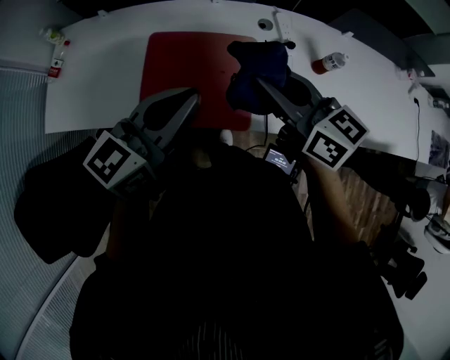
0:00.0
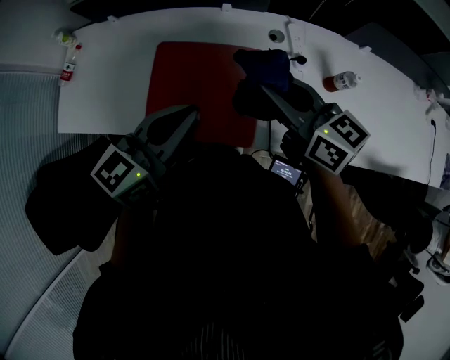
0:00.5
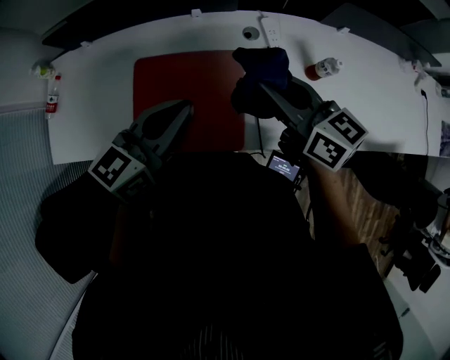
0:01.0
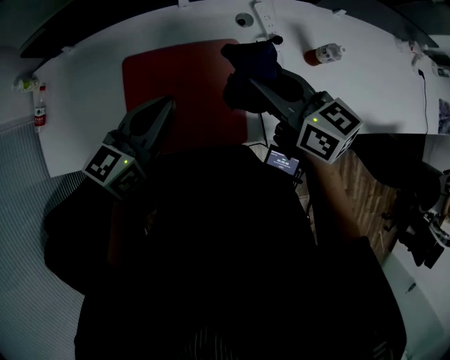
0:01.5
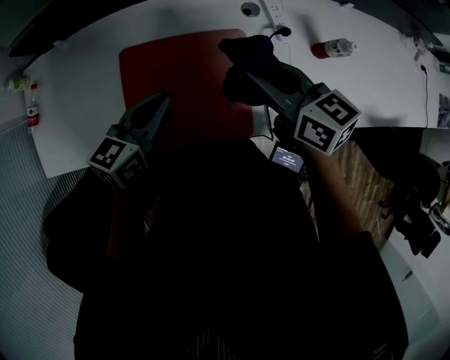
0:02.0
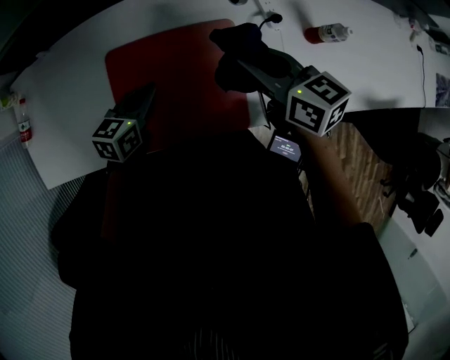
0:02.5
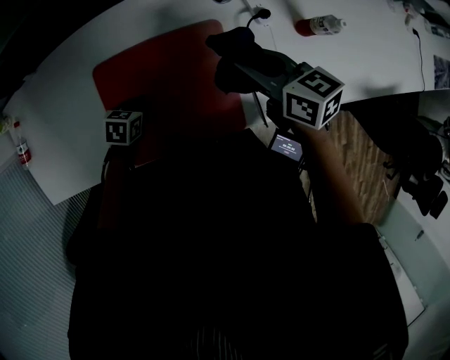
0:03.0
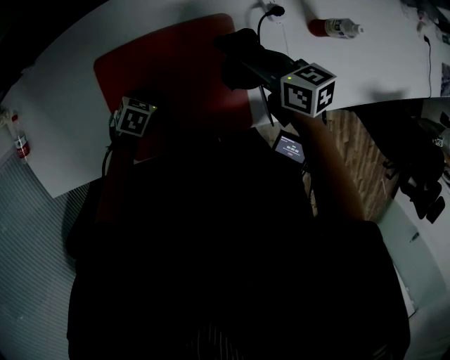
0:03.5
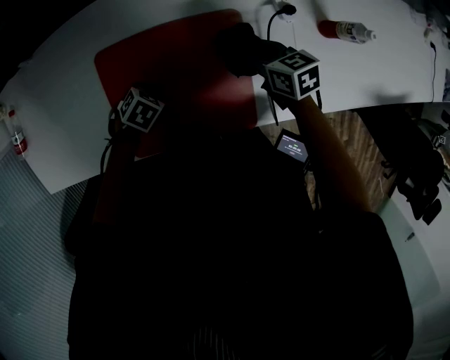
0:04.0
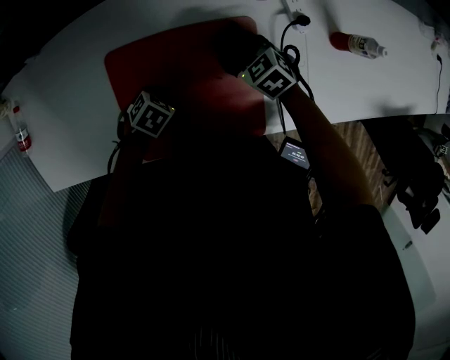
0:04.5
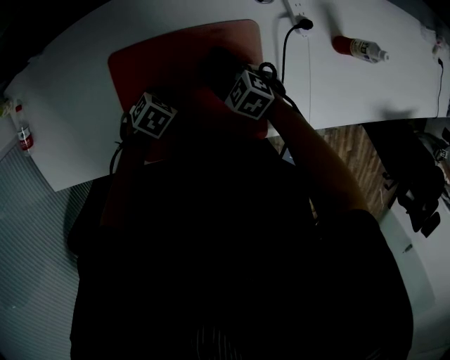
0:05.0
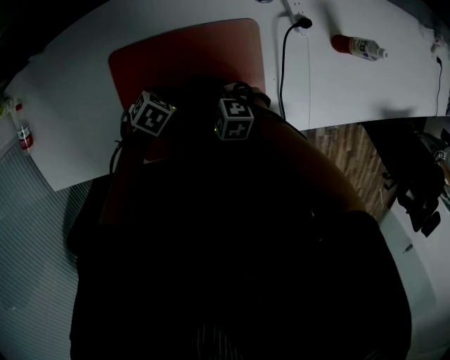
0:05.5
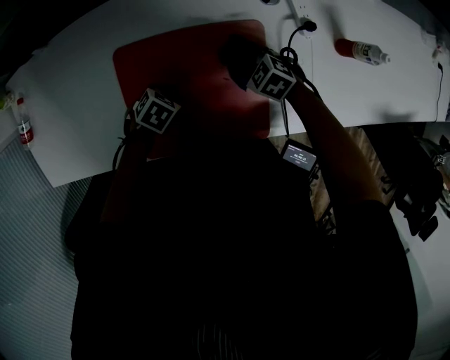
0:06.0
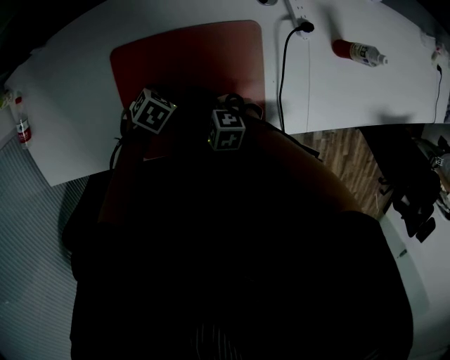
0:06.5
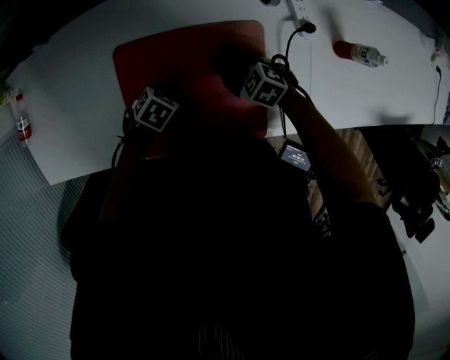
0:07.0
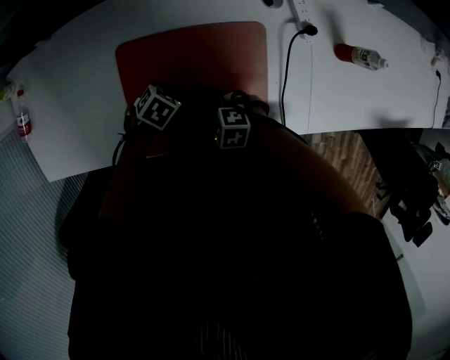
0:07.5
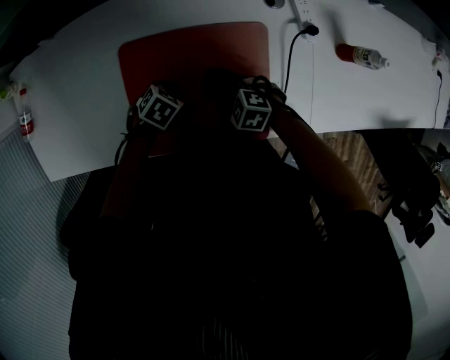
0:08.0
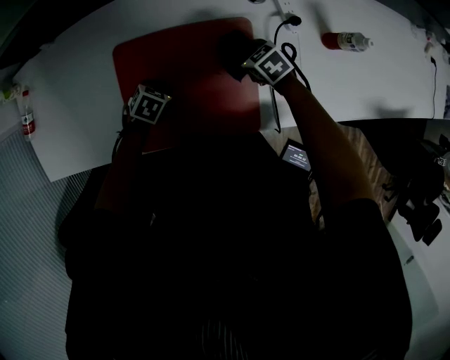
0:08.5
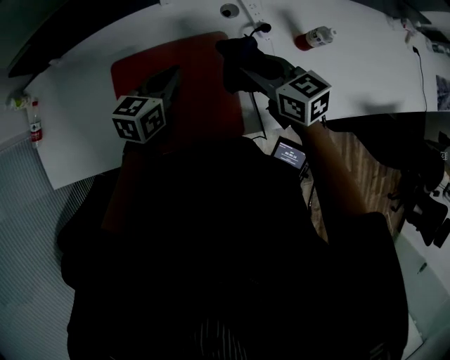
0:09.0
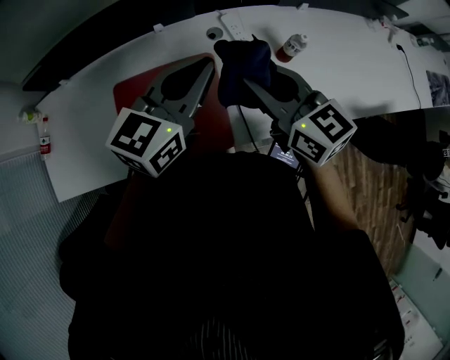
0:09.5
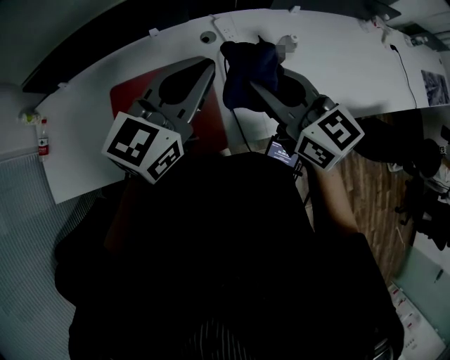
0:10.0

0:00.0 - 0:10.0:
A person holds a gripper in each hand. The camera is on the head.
0:00.0 - 0:02.0: The left gripper heads downward and forward, covering some 20 cm. The right gripper is displaced forward and downward by roughly 15 cm.
0:02.0 - 0:04.0: Both grippers move downward, about 25 cm. The right gripper swivels some 20 degrees. Meanwhile the left gripper tips its fingers downward by approximately 60 degrees.
0:04.0 - 0:06.0: The right gripper heads downward, covering some 10 cm, and rolls counterclockwise, seen from behind, by about 40 degrees.
0:08.0 - 0:10.0: Both grippers move upward, about 40 cm. The right gripper tips its fingers upward by roughly 60 degrees. Meanwhile the left gripper tilts its fingers approximately 70 degrees upward.

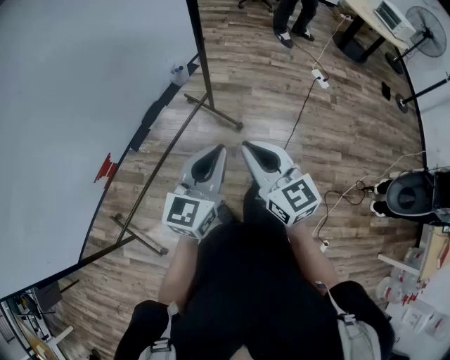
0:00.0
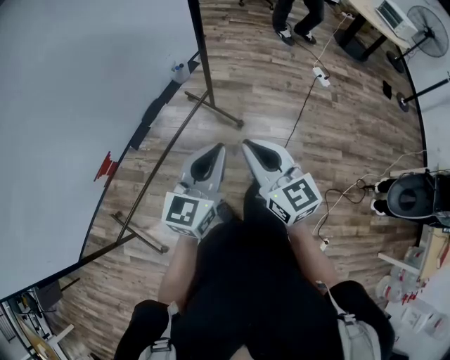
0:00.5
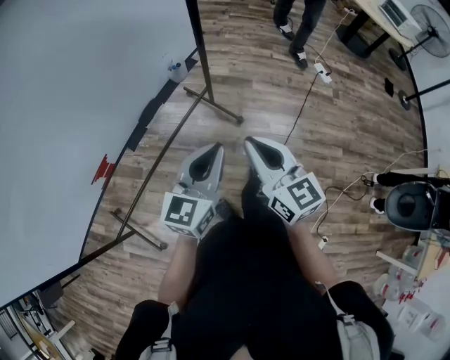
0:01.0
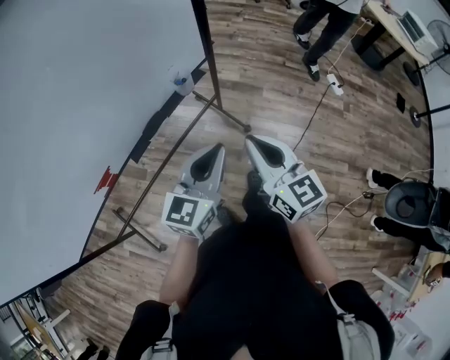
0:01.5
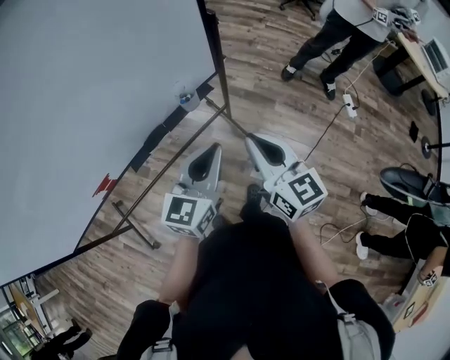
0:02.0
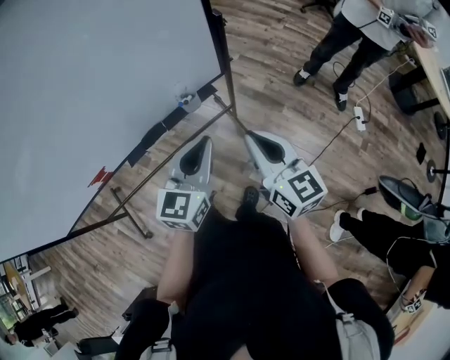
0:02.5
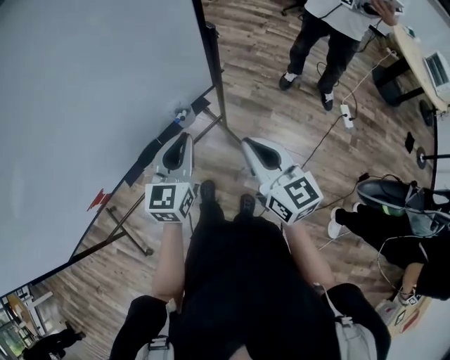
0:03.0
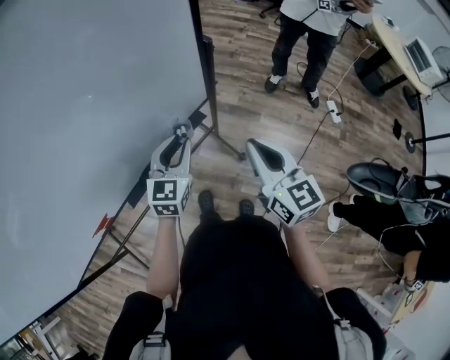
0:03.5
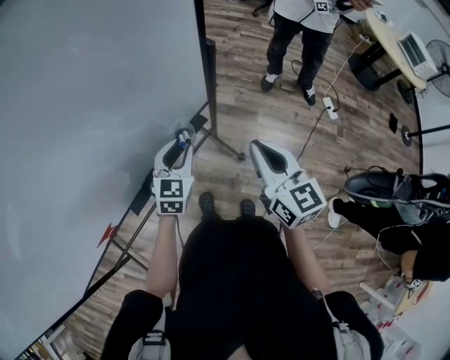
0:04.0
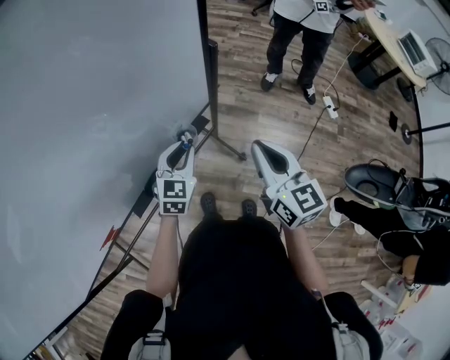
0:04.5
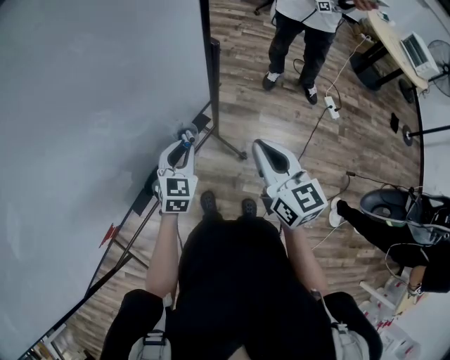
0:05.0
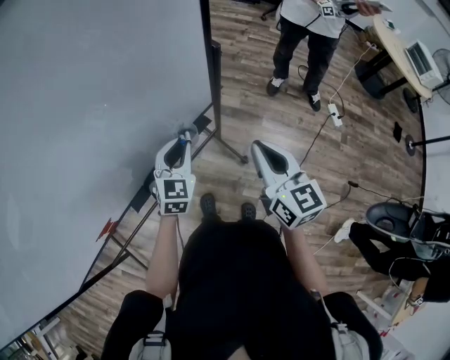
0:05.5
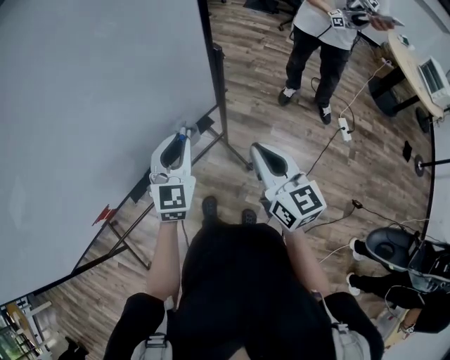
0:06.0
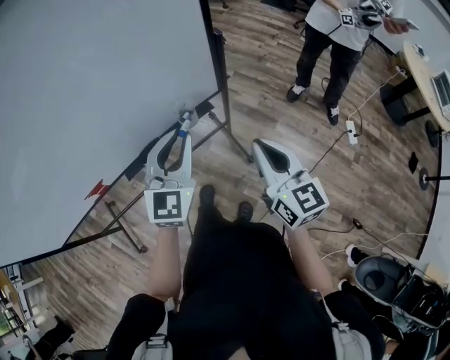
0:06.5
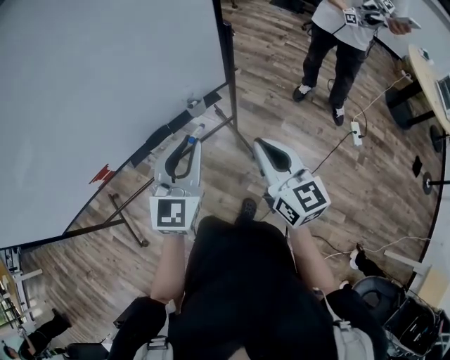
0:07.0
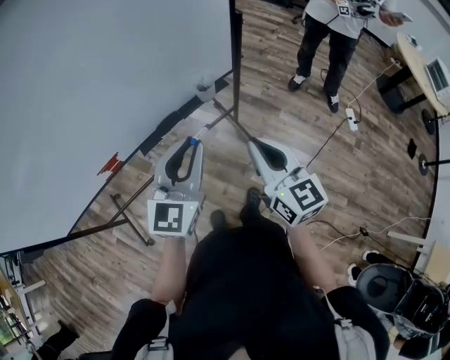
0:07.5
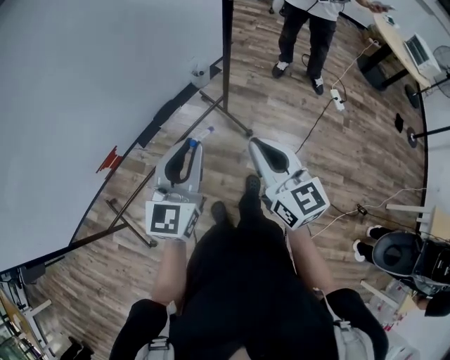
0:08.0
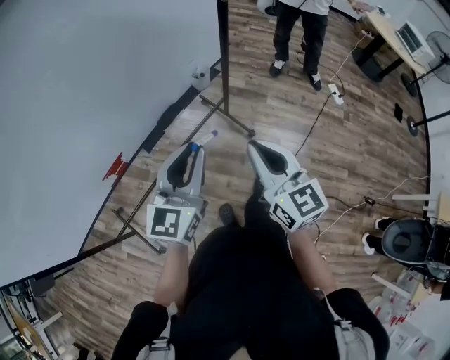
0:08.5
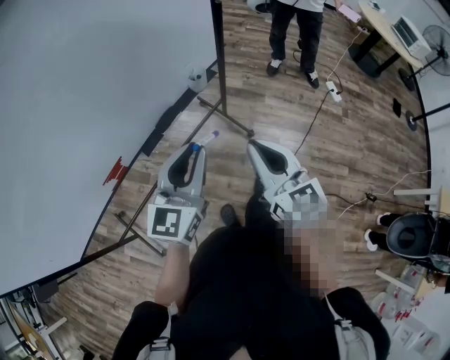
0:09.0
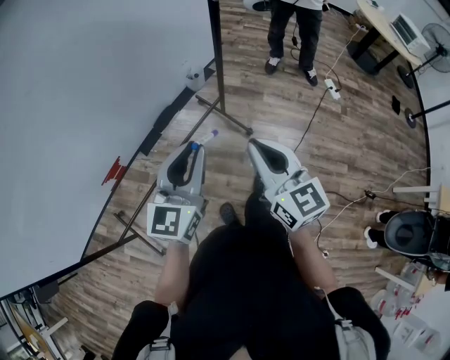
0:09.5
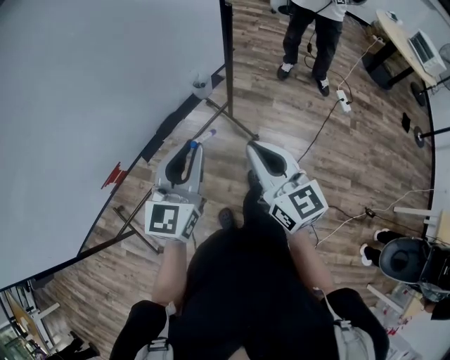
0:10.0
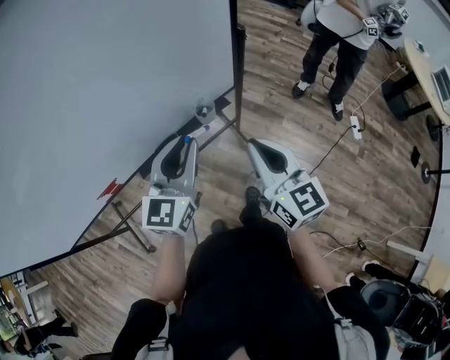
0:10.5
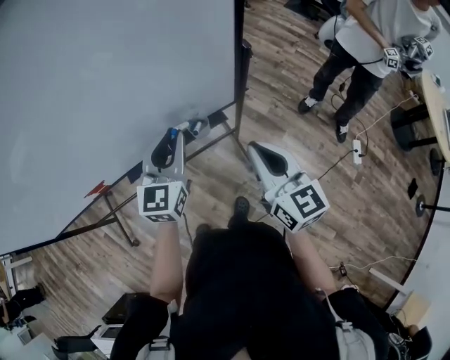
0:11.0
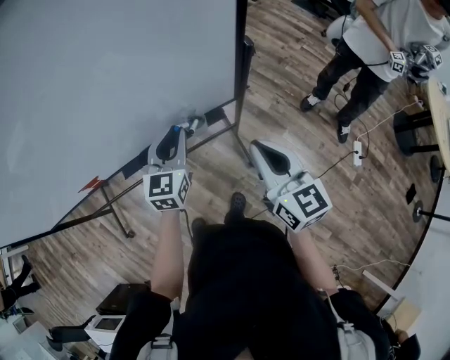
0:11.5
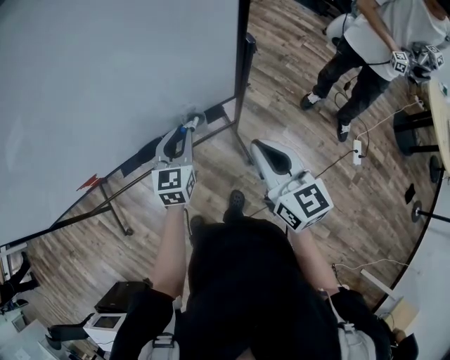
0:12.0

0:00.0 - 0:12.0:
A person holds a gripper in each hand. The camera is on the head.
0:00.0 - 0:02.0: The grippers both shift forward by about 20 cm.
0:02.0 - 0:04.0: The left gripper goes approximately 25 cm forward, downward and to the left, rotates approximately 20 degrees, and opens its fingers. Meanwhile the right gripper heads forward, covering about 10 cm.
0:04.0 - 0:06.0: The left gripper goes roughly 10 cm upward.
0:06.0 - 0:08.0: The right gripper heads backward and to the left, covering some 25 cm, while the left gripper is displaced backward by some 25 cm, and changes its angle by approximately 30 degrees.
0:08.0 - 0:10.0: The grippers make only small movements.
0:10.0 - 0:12.0: The right gripper moves forward and to the right, some 25 cm, and rotates roughly 20 degrees; the left gripper heads forward and downward, covering some 25 cm, and swivels about 30 degrees.

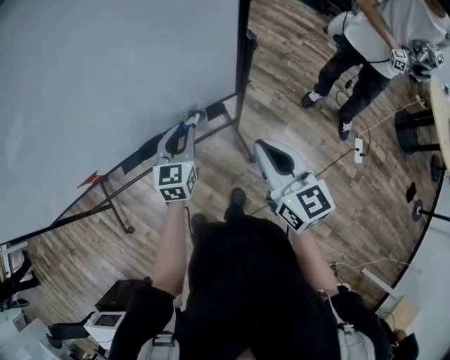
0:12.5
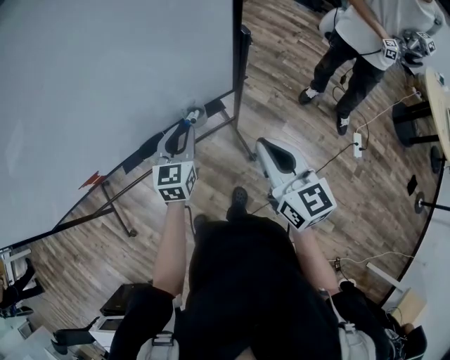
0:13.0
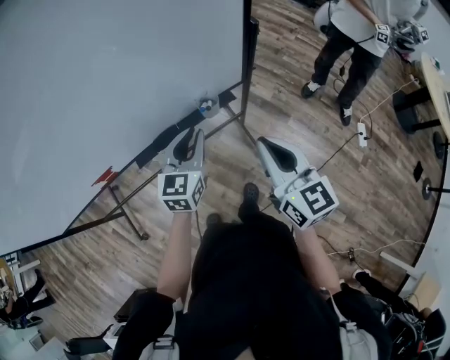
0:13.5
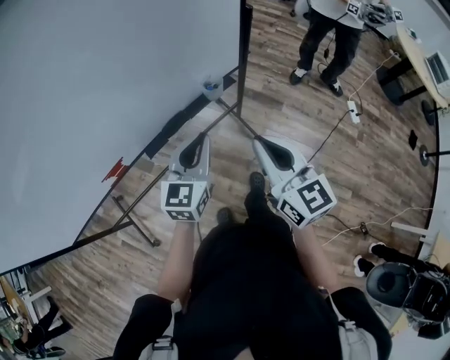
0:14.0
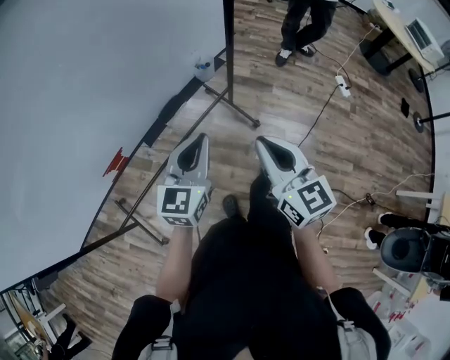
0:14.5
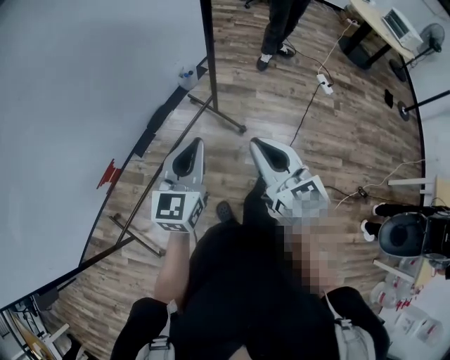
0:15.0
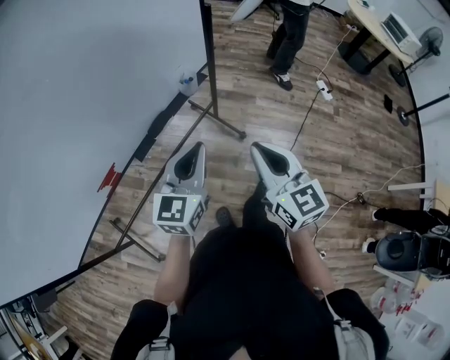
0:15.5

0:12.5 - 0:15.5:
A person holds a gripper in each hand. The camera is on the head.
0:12.5 - 0:14.0: The left gripper shifts about 20 cm backward, upward and to the left, and changes its angle by some 20 degrees; the right gripper is displaced backward and to the left by approximately 20 cm.
0:14.0 - 0:15.5: The grippers both shift backward by some 10 cm.

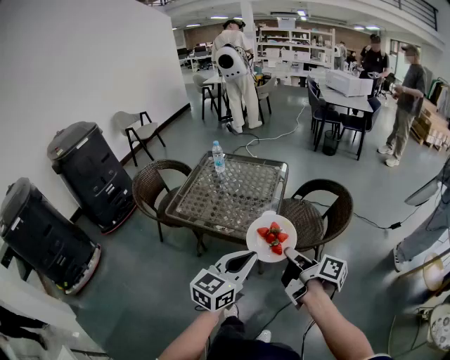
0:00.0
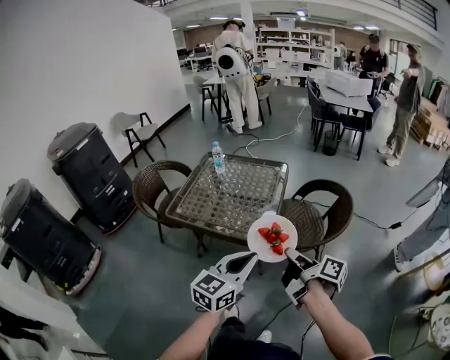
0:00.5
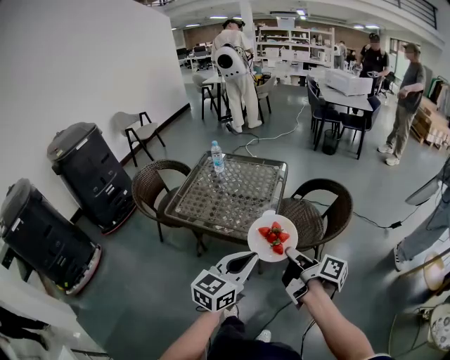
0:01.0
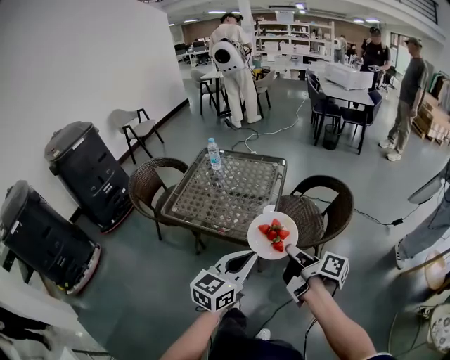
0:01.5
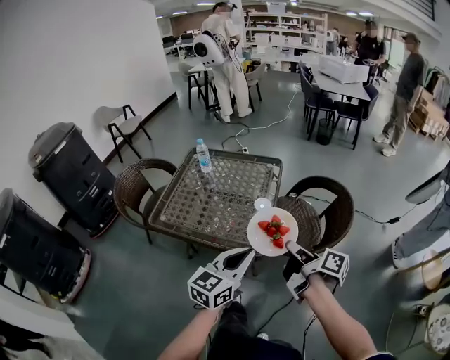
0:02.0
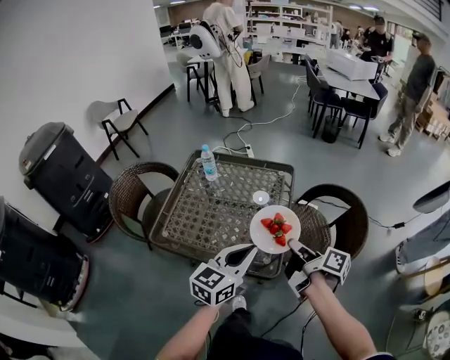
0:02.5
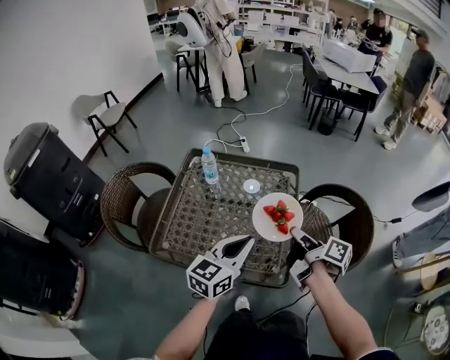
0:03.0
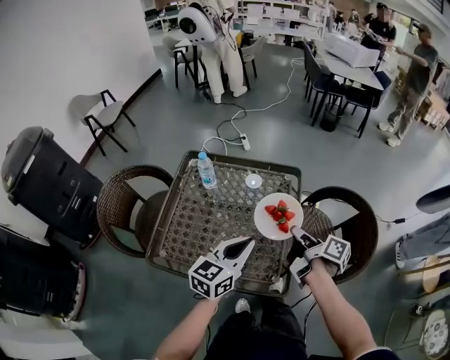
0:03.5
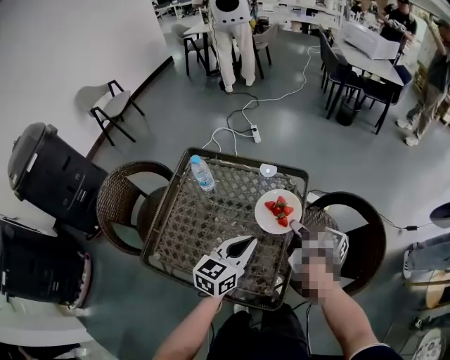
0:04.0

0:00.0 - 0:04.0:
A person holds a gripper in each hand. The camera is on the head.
0:00.0 - 0:02.0: Both grippers move forward, some 10 cm.
0:02.0 - 0:04.0: The two grippers go some 30 cm forward.
